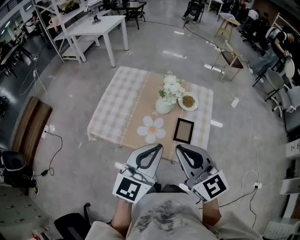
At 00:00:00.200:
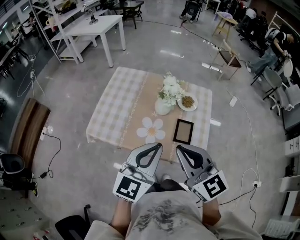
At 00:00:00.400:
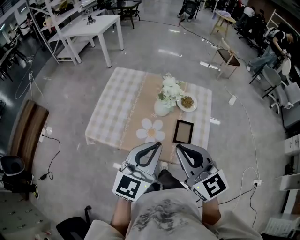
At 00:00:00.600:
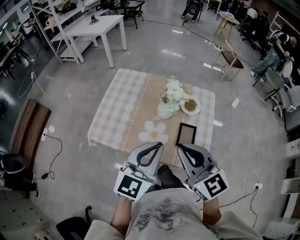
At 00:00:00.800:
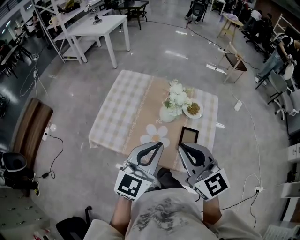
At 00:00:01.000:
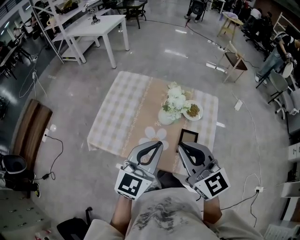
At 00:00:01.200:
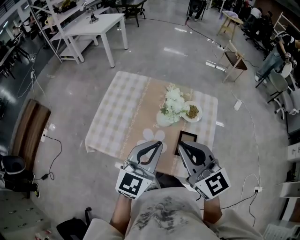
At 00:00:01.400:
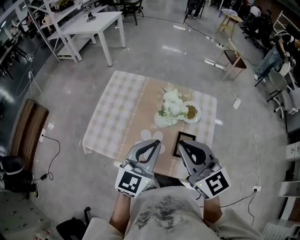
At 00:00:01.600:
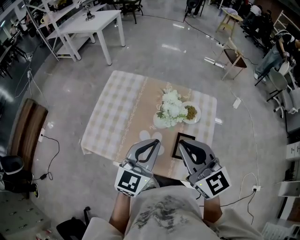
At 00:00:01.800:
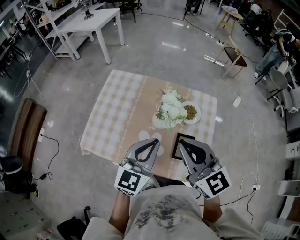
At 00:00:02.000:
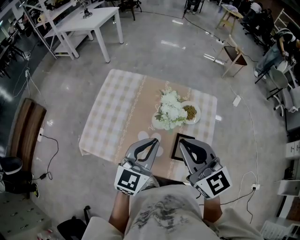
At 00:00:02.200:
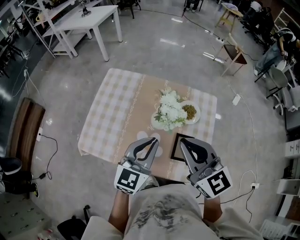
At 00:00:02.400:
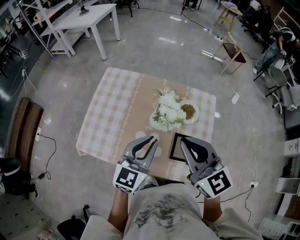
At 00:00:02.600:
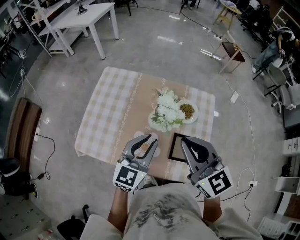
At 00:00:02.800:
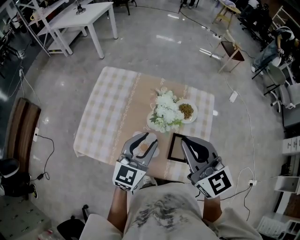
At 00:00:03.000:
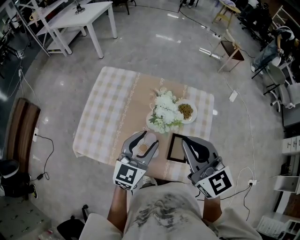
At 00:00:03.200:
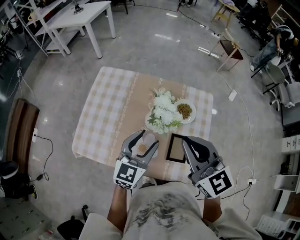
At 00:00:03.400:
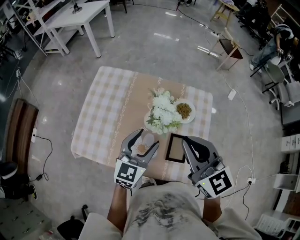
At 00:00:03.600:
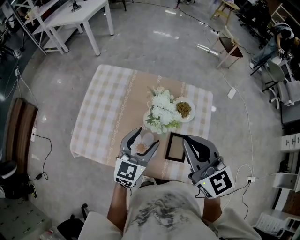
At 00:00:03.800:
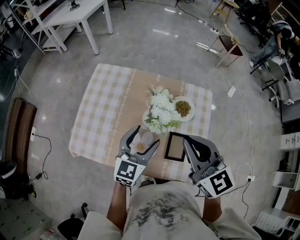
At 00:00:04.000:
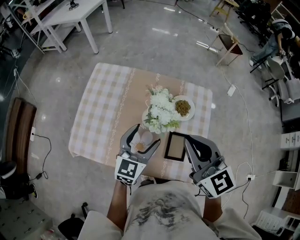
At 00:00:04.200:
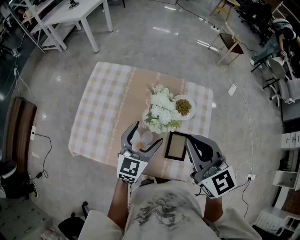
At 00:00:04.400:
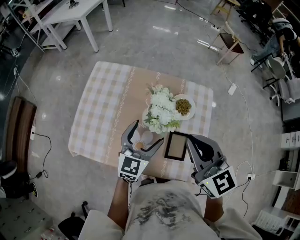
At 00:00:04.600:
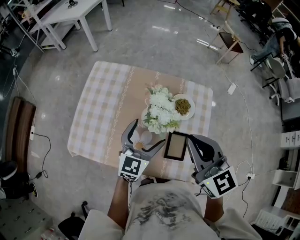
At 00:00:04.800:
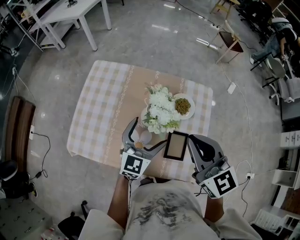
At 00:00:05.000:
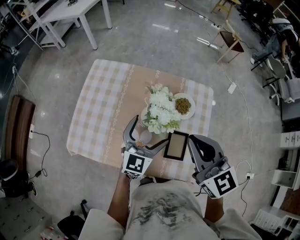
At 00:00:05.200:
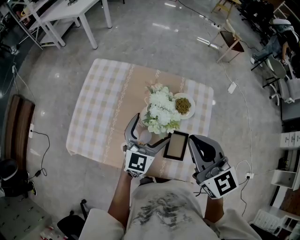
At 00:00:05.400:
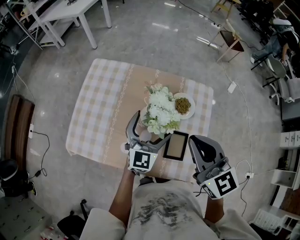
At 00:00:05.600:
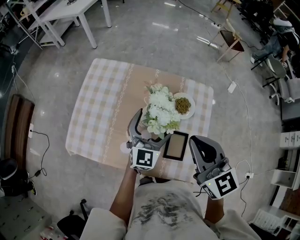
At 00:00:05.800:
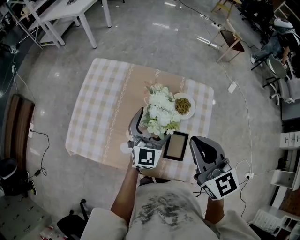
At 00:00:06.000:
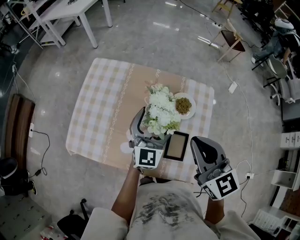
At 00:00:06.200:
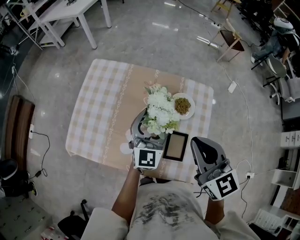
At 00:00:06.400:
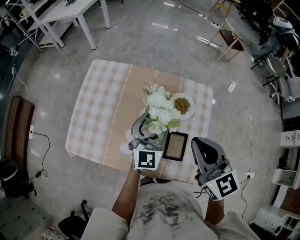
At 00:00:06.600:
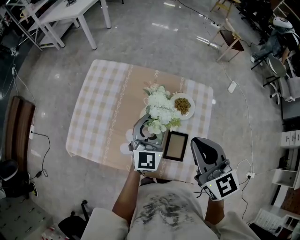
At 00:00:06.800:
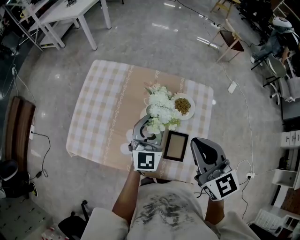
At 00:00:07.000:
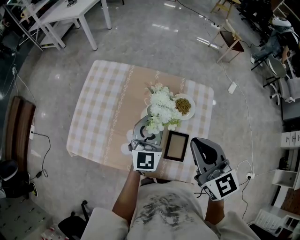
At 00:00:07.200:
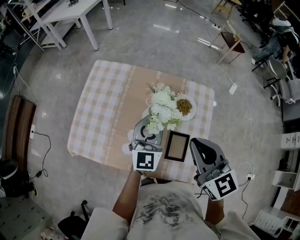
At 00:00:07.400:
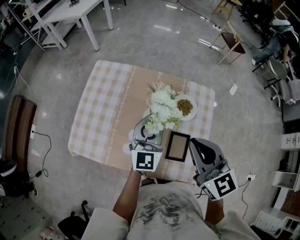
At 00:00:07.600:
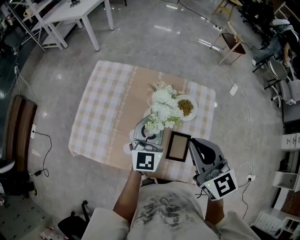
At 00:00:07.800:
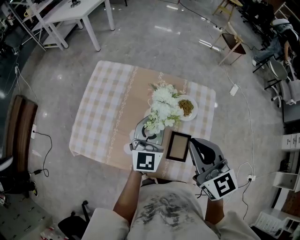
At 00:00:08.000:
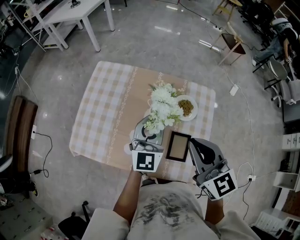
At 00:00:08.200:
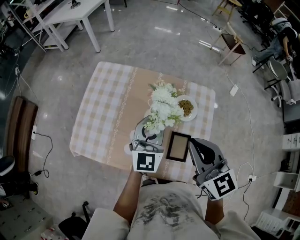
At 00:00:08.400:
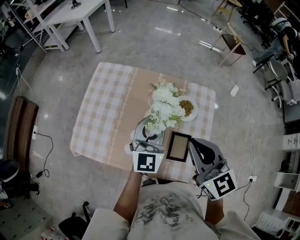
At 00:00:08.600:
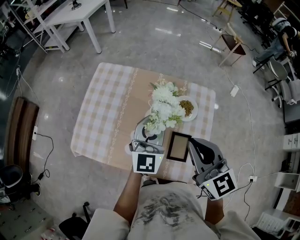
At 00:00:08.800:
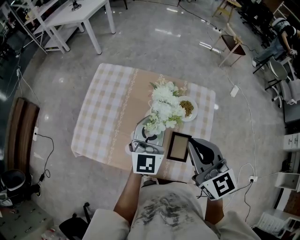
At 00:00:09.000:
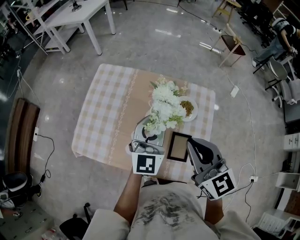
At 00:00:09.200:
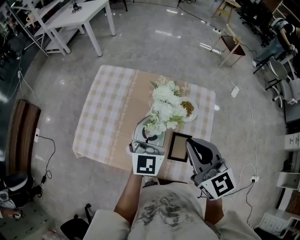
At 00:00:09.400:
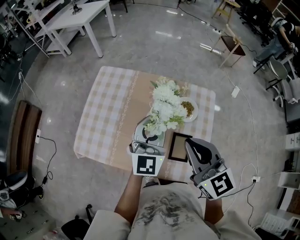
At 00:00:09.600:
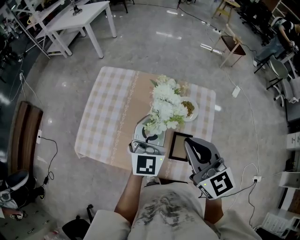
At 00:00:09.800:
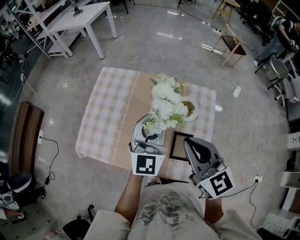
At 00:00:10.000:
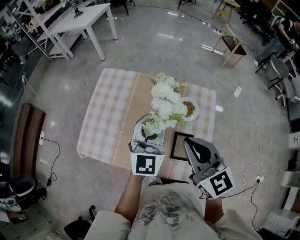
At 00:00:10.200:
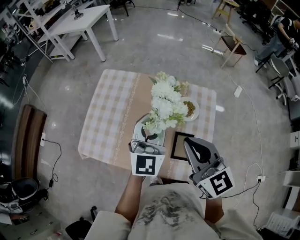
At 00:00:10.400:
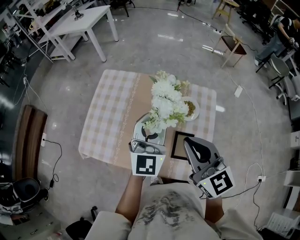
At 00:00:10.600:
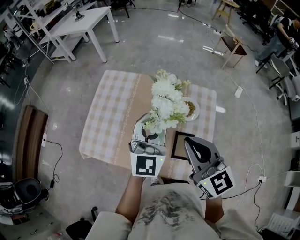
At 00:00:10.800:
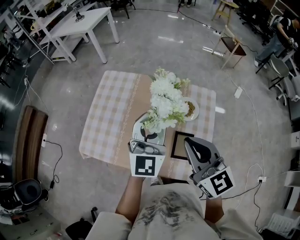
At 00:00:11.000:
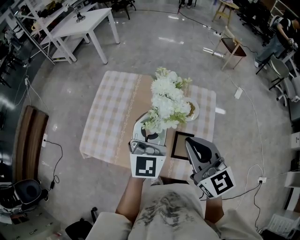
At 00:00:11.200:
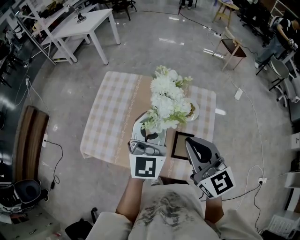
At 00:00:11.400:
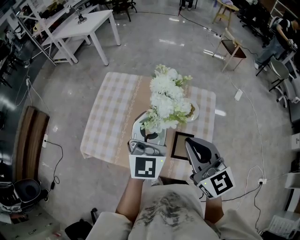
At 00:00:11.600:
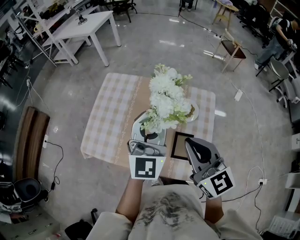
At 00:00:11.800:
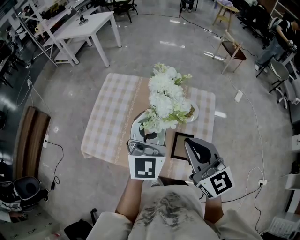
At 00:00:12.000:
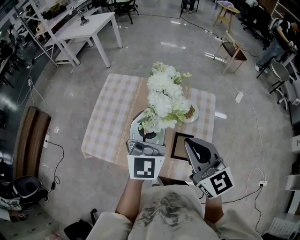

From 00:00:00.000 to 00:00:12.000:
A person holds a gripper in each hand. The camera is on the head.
From 00:00:00.000 to 00:00:01.600: The left gripper heads forward and downward, covering roughly 15 cm, while the right gripper shifts roughly 15 cm forward.
From 00:00:01.600 to 00:00:03.000: The left gripper travels downward and forward by about 10 cm. Meanwhile the right gripper shifts by some 5 cm.
From 00:00:03.000 to 00:00:04.400: The left gripper ends up about 5 cm from where it was, and opens its fingers.
From 00:00:04.400 to 00:00:06.000: The left gripper moves approximately 5 cm.
From 00:00:06.000 to 00:00:07.600: The left gripper ends up about 5 cm from where it was, and closes.
From 00:00:07.600 to 00:00:09.000: The grippers make only small movements.
From 00:00:09.000 to 00:00:10.400: The left gripper moves upward, about 5 cm.
From 00:00:10.400 to 00:00:12.000: The left gripper is displaced upward by about 5 cm.

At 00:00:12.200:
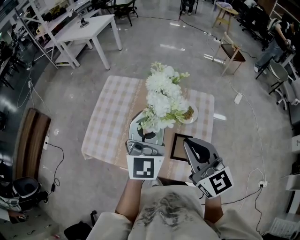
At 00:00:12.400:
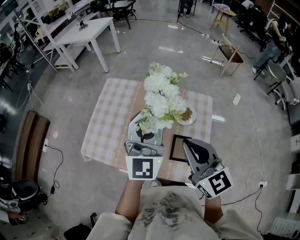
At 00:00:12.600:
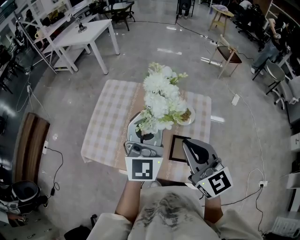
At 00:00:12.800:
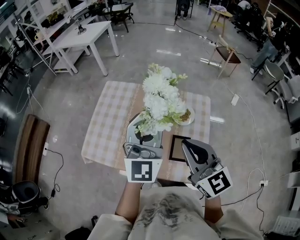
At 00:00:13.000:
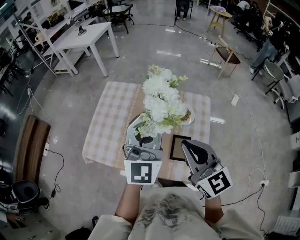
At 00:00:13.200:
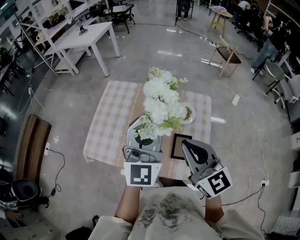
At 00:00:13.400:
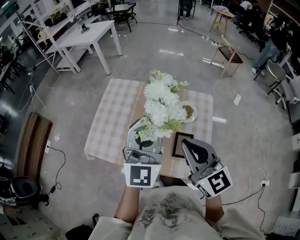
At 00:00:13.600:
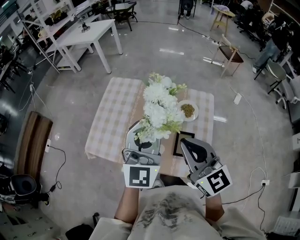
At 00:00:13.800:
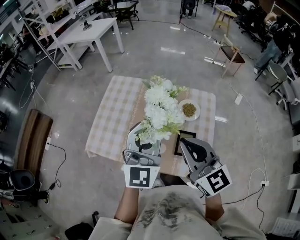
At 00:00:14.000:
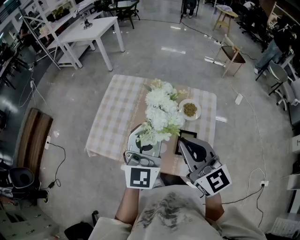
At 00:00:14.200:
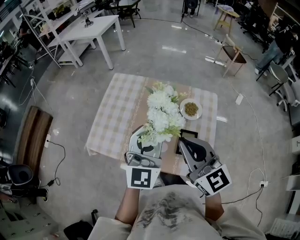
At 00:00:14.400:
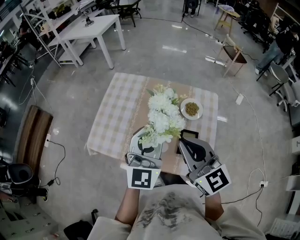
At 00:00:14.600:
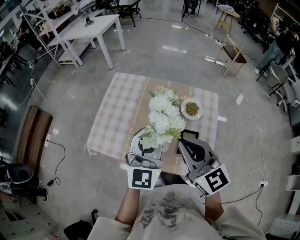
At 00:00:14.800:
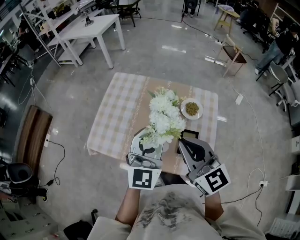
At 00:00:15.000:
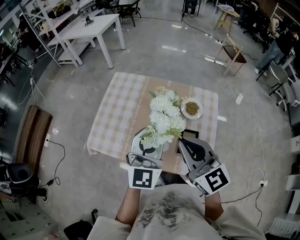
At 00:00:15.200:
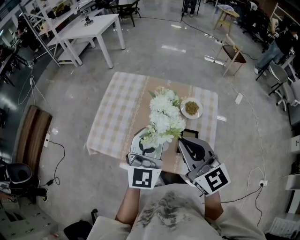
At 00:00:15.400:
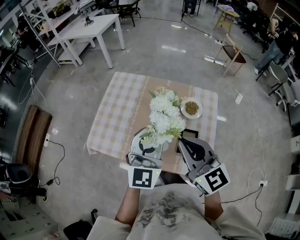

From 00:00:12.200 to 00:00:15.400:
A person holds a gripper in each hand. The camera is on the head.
From 00:00:12.200 to 00:00:13.800: The left gripper travels backward by approximately 5 cm.
From 00:00:13.800 to 00:00:15.400: The grippers make only small movements.

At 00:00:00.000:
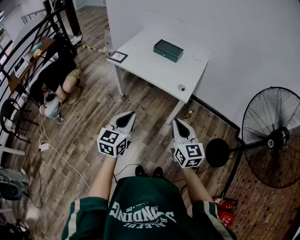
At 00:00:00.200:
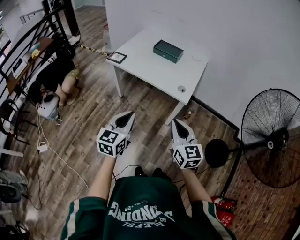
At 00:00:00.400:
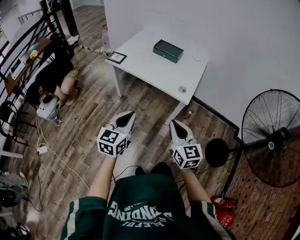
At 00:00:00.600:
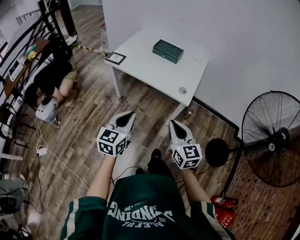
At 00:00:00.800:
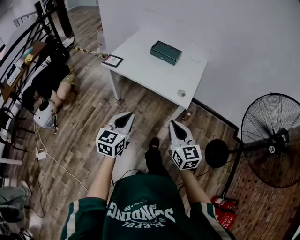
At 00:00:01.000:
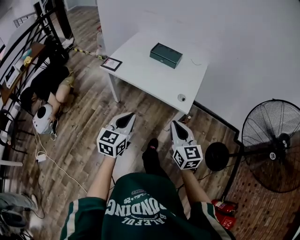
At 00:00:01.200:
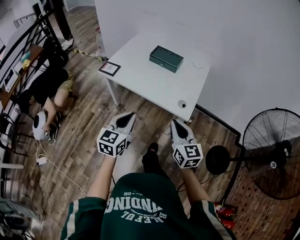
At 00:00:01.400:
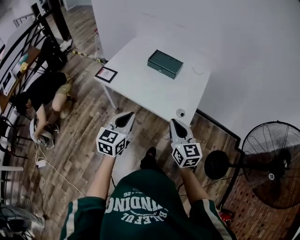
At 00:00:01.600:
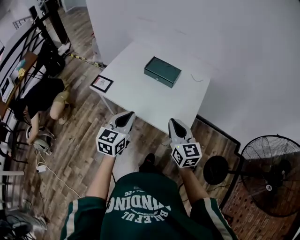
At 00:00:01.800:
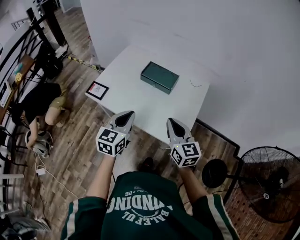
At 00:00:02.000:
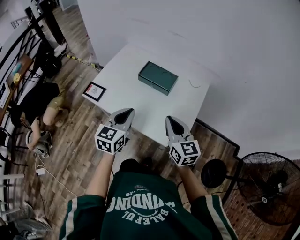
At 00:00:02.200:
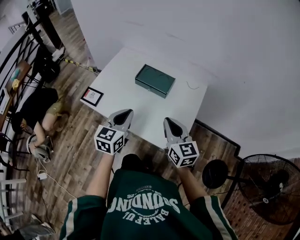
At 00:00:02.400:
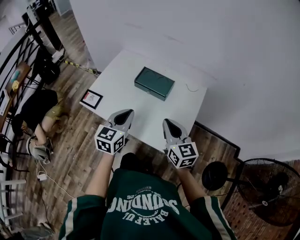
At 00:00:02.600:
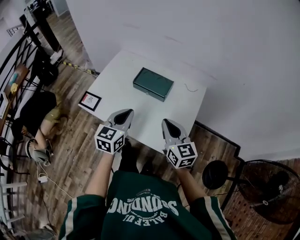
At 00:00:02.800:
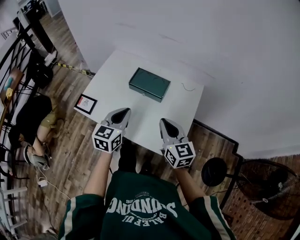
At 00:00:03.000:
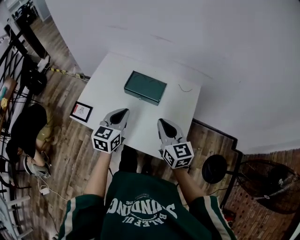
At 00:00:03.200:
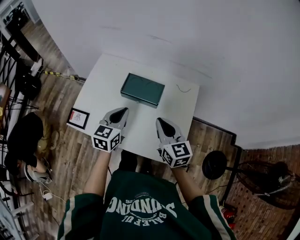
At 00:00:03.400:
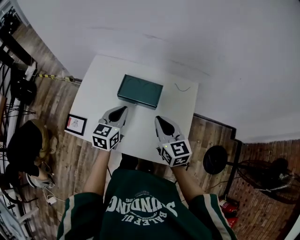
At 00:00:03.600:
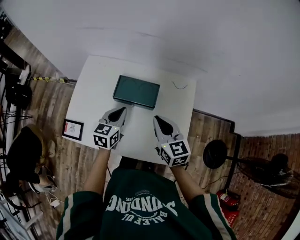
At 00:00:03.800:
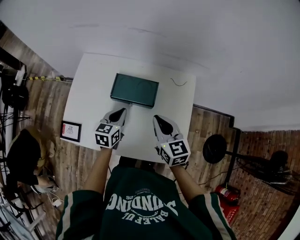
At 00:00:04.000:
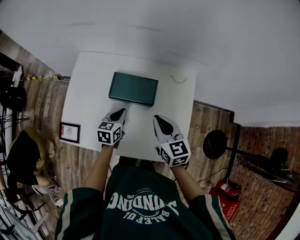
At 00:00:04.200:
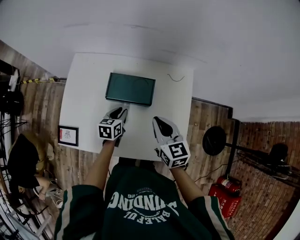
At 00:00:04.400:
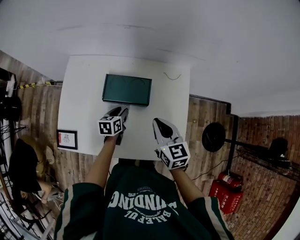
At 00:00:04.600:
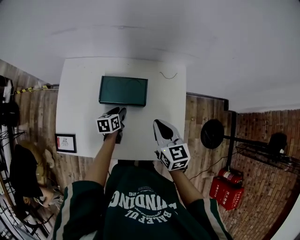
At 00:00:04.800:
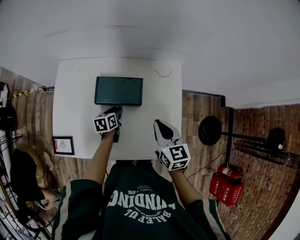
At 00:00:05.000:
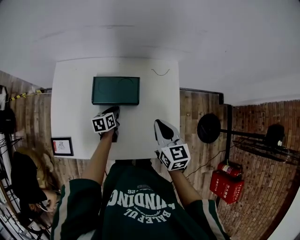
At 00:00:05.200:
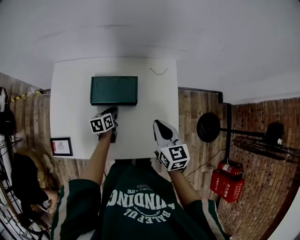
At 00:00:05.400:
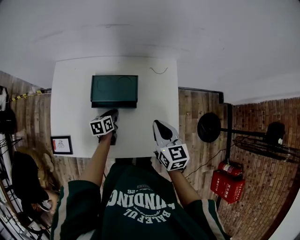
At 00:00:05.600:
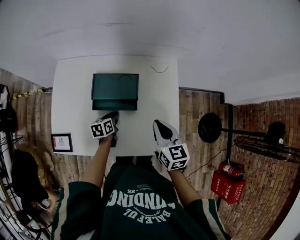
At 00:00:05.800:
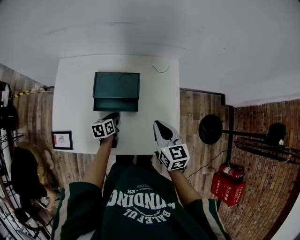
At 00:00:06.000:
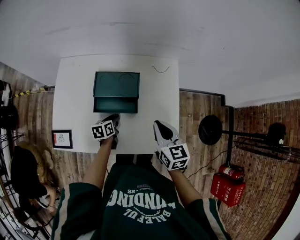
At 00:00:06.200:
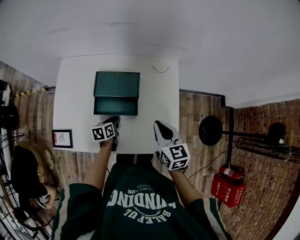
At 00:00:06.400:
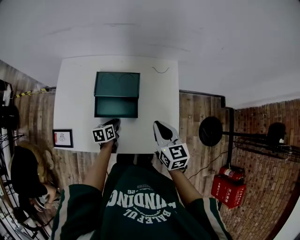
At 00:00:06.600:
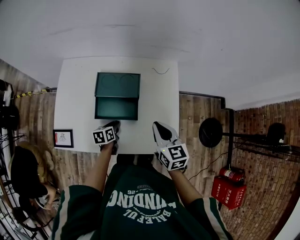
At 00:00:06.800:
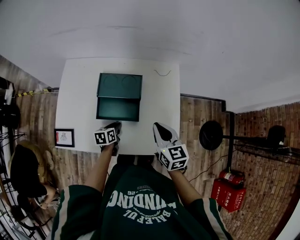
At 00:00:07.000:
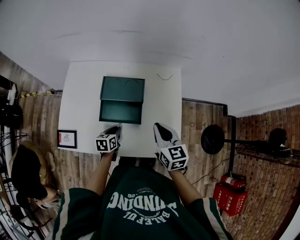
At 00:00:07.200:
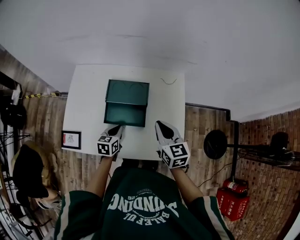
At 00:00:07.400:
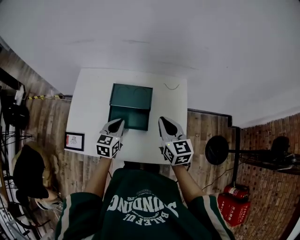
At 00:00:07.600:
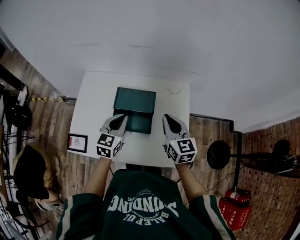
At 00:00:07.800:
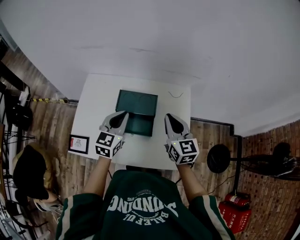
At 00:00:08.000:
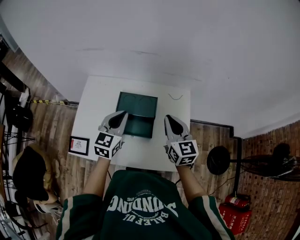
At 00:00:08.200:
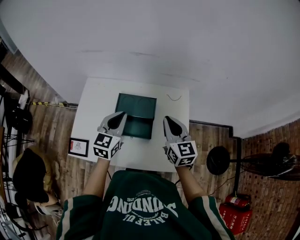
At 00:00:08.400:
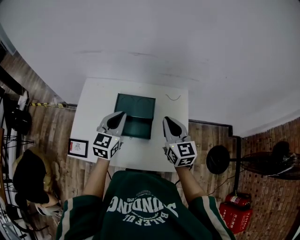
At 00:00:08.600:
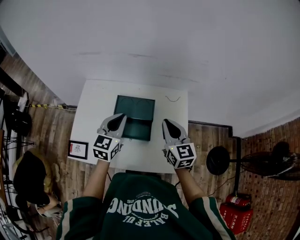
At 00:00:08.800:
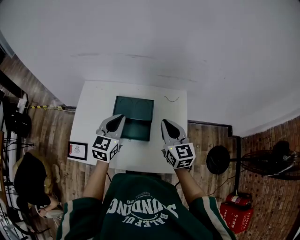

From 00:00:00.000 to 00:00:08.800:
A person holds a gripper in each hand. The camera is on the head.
From 00:00:00.000 to 00:00:01.400: The two grippers go some 25 cm forward.
From 00:00:01.400 to 00:00:03.000: Both grippers travel together forward, about 25 cm.
From 00:00:03.000 to 00:00:04.400: The right gripper travels forward and downward by some 10 cm, while the left gripper shifts some 25 cm downward and forward, rotates about 30 degrees, and opens its fingers.
From 00:00:04.400 to 00:00:05.800: The left gripper shifts by roughly 5 cm. The right gripper travels to the right by some 5 cm.
From 00:00:05.800 to 00:00:07.400: The right gripper travels upward by some 5 cm. The left gripper moves upward, about 15 cm, and changes its angle by approximately 30 degrees.
From 00:00:07.400 to 00:00:08.800: The left gripper shifts about 15 cm upward.
